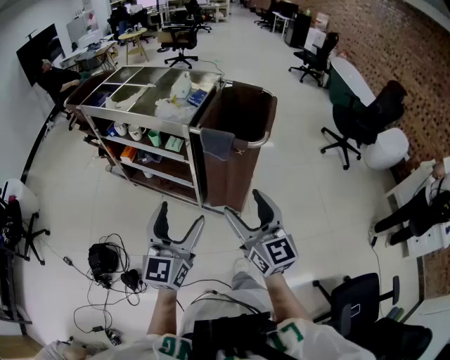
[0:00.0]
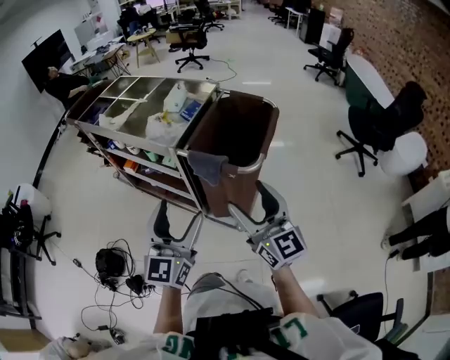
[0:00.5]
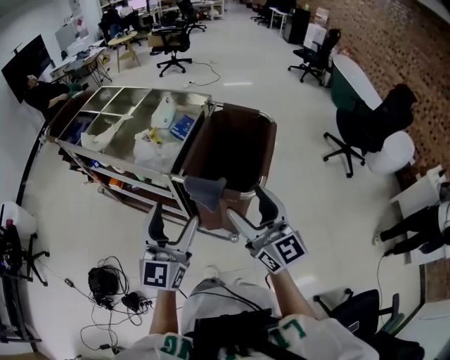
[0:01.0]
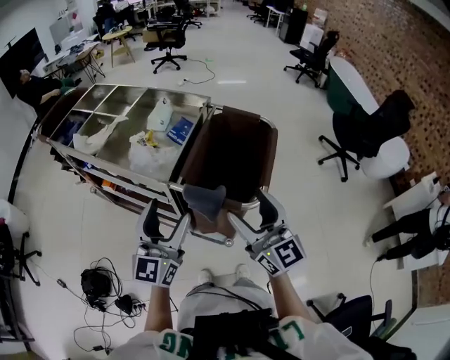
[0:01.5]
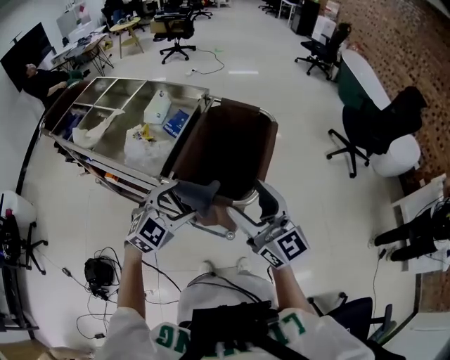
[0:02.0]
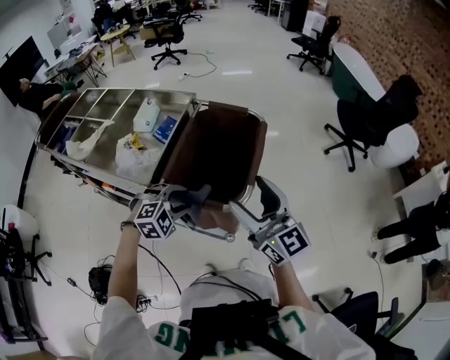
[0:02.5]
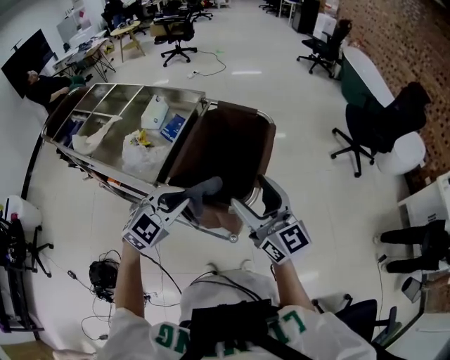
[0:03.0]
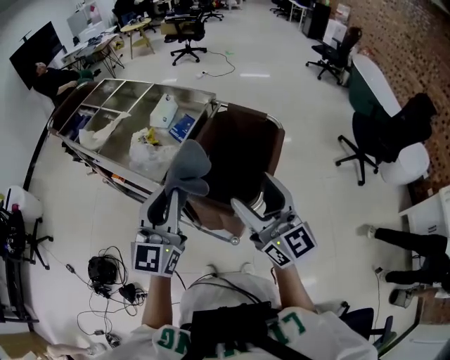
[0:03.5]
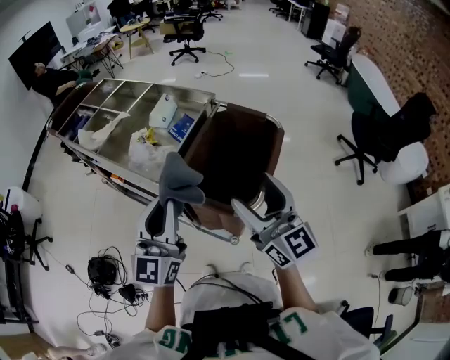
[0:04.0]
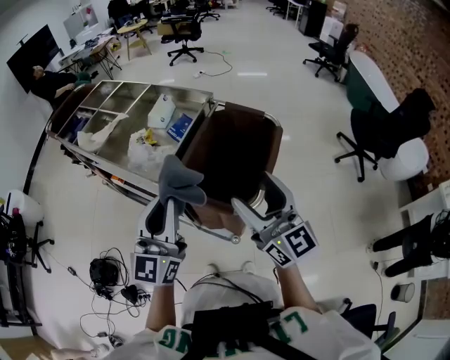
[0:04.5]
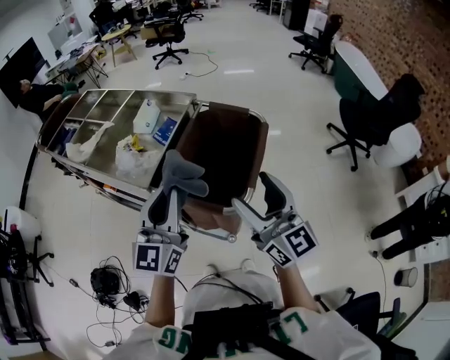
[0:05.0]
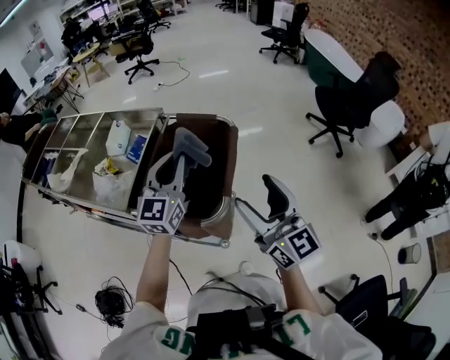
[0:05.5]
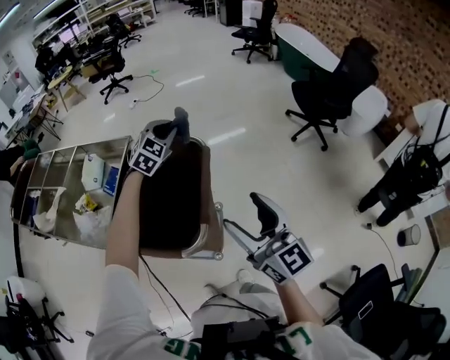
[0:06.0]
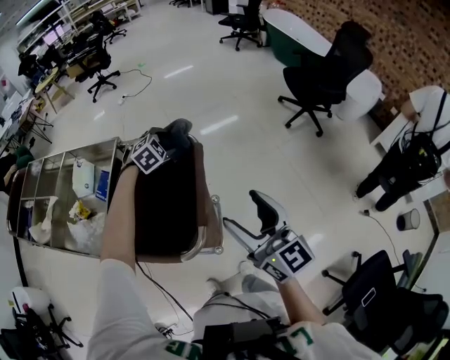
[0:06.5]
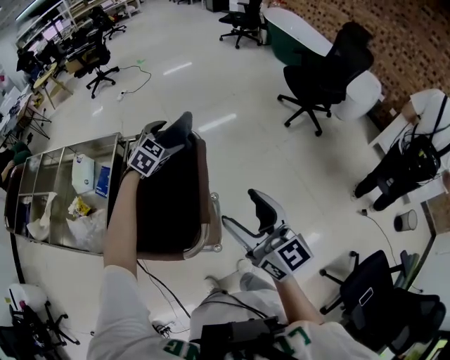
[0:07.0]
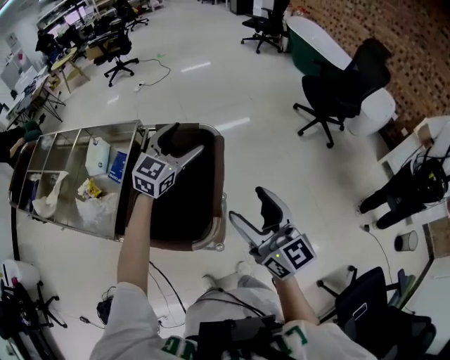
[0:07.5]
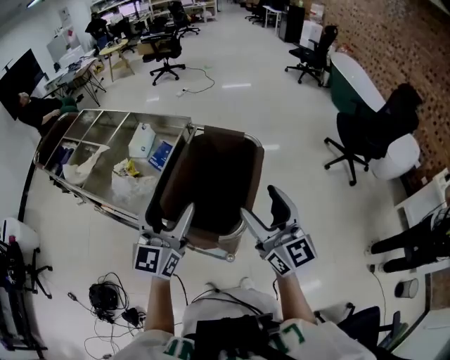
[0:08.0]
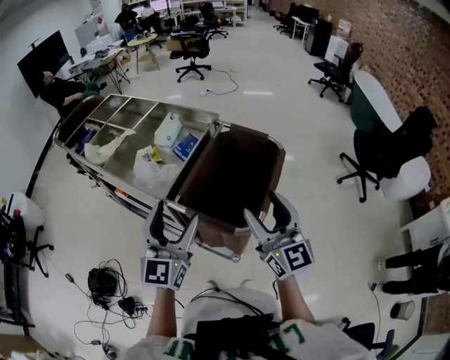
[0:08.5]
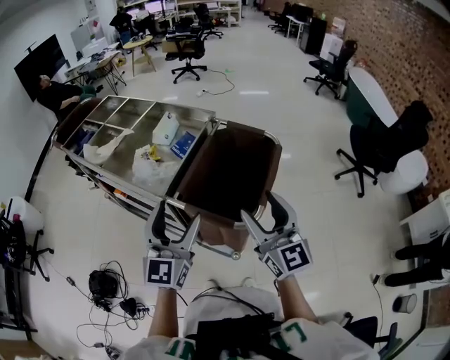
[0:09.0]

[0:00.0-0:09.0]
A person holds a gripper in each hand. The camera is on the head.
0:00.0 to 0:02.0: The two grippers go about 30 cm forward and to the right. The left gripper angles its fingers downward, by approximately 30 degrees.
0:02.0 to 0:04.5: The left gripper is displaced upward by roughly 15 cm, tips its fingers upward by roughly 40 degrees, and closes its fingers.
0:04.5 to 0:07.0: The left gripper shifts by approximately 50 cm, angles its fingers downward, by roughly 50 degrees, and opens its fingers; the right gripper shifts by about 20 cm, and changes its angle by roughly 20 degrees.
0:07.0 to 0:09.0: The right gripper changes place by about 15 cm. The left gripper ends up approximately 50 cm from where it was, and tilts its fingers about 40 degrees upward.

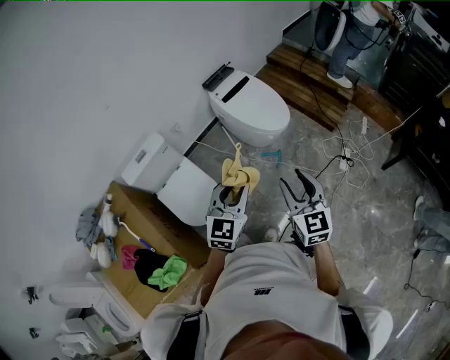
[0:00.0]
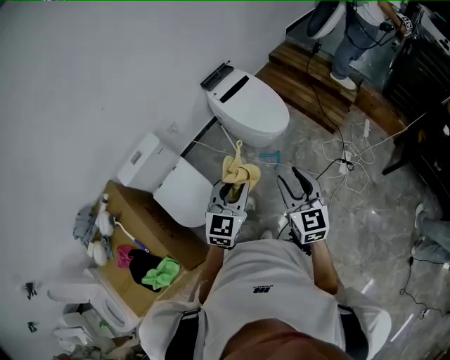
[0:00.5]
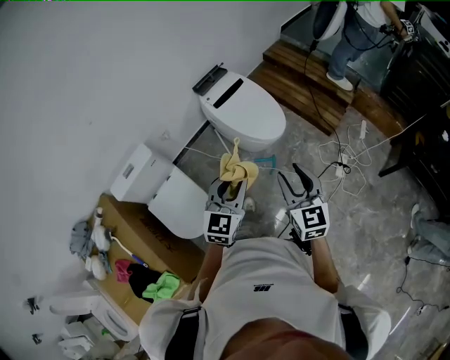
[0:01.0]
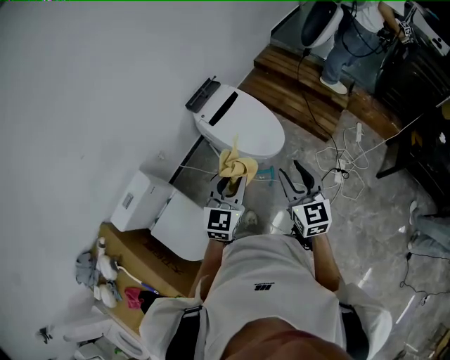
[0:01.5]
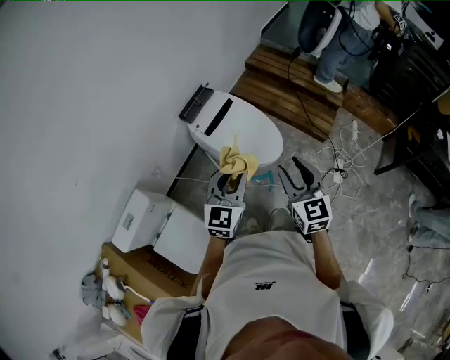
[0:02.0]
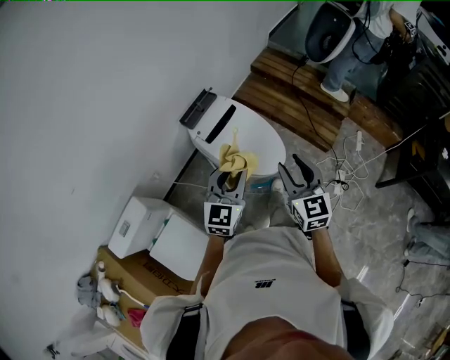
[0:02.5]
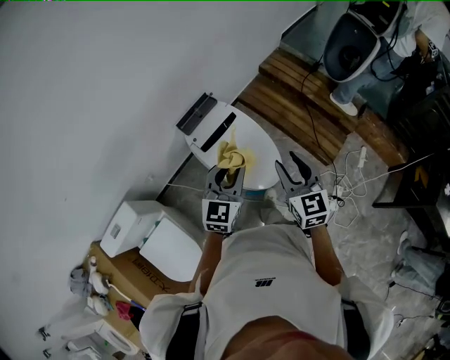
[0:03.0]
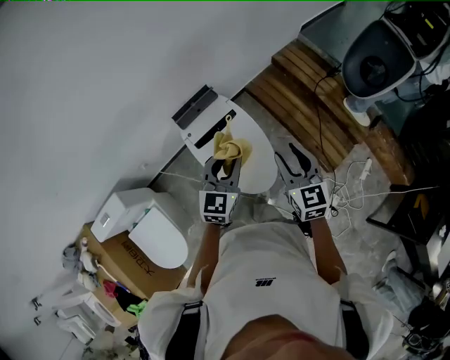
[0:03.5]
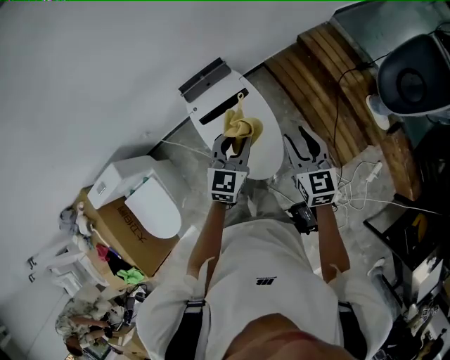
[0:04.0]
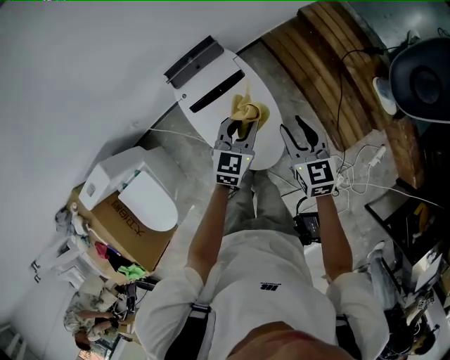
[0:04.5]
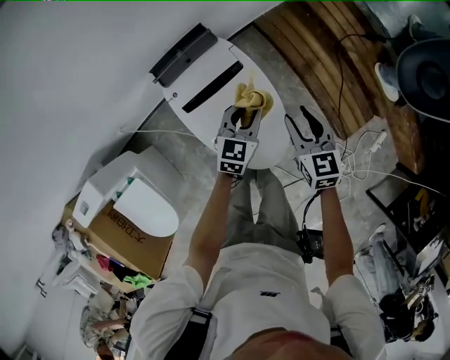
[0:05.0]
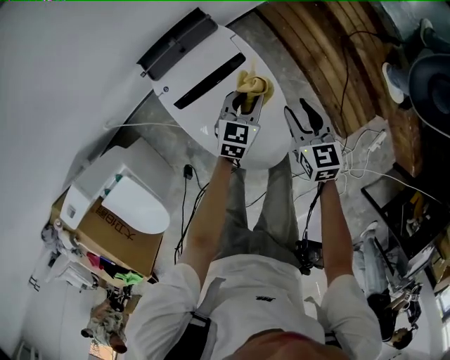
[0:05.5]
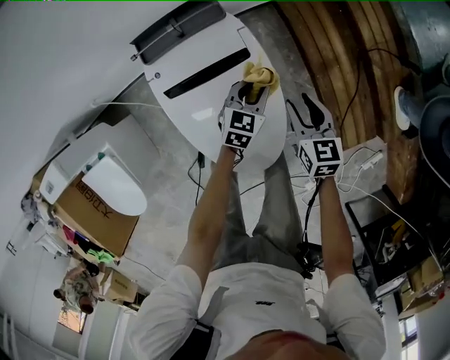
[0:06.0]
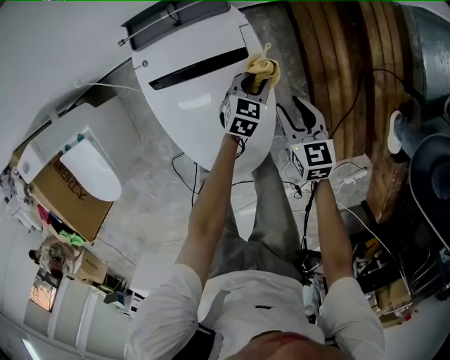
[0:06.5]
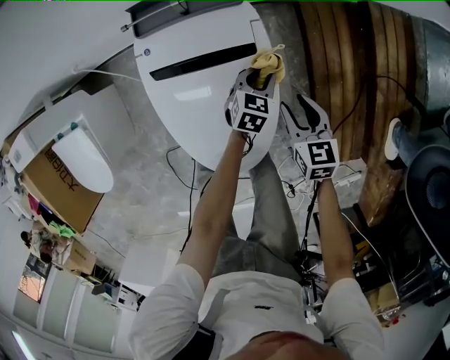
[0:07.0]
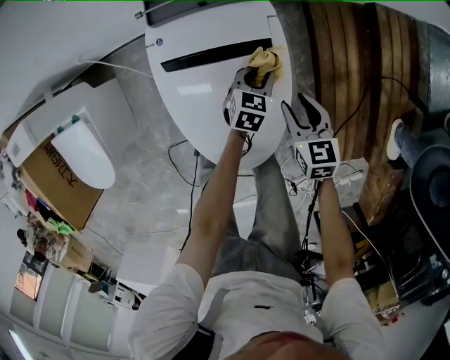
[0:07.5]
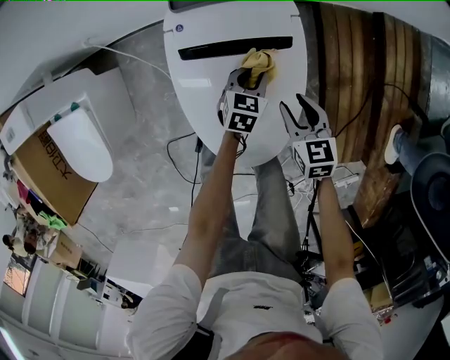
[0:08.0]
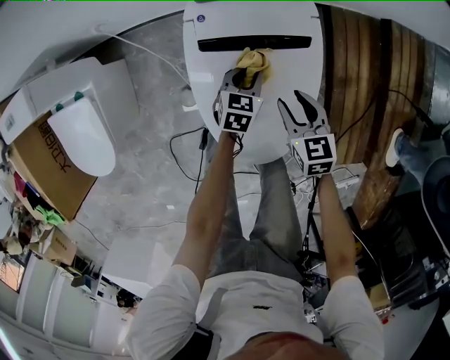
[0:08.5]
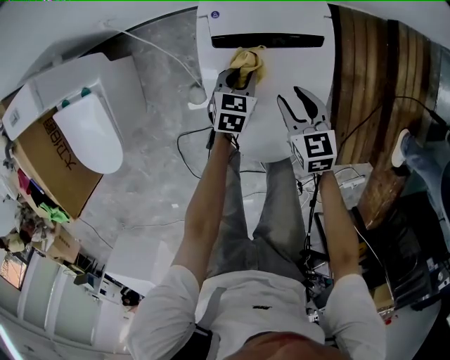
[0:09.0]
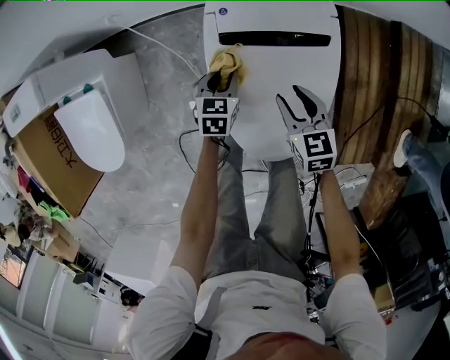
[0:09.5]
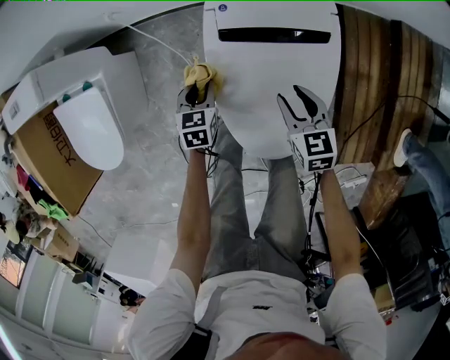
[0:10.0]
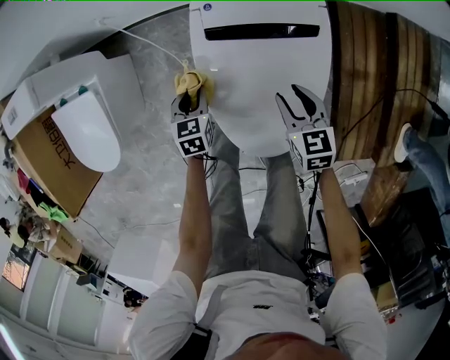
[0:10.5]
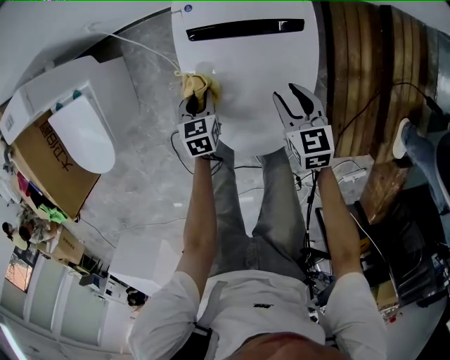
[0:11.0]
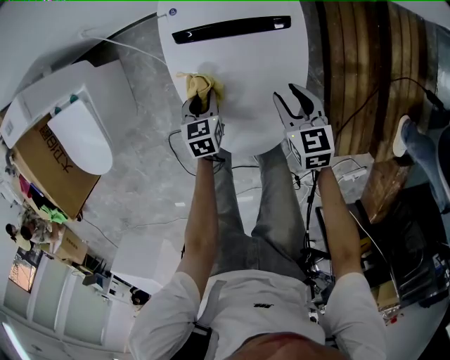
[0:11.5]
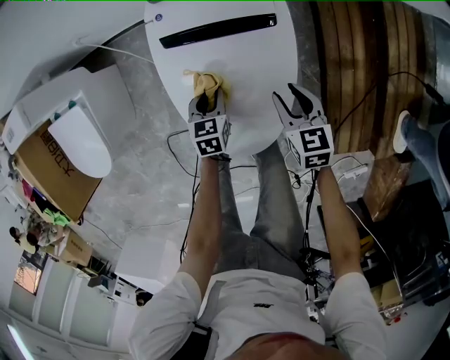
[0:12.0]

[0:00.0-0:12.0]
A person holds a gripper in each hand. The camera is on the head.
0:00.0 to 0:02.0: The grippers both shift forward by roughly 35 cm.
0:02.0 to 0:04.0: The two grippers travel together, about 40 cm. The left gripper rotates some 30 degrees. Meanwhile the right gripper turns by about 30 degrees.
0:04.0 to 0:06.0: The left gripper heads downward, covering about 40 cm, and turns by roughly 20 degrees, while the right gripper shifts approximately 40 cm downward and forward.
0:06.0 to 0:08.0: The grippers both shift to the left and downward by roughly 10 cm. The right gripper rotates roughly 20 degrees. Meanwhile the left gripper rotates roughly 20 degrees.
0:08.0 to 0:10.0: The left gripper shifts roughly 25 cm to the left, and rotates roughly 20 degrees; the right gripper moves to the left, approximately 10 cm.
0:10.0 to 0:12.0: The left gripper is displaced to the right and backward by some 15 cm. Meanwhile the right gripper heads to the right, covering approximately 15 cm.

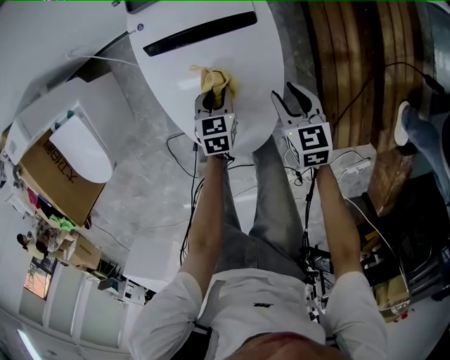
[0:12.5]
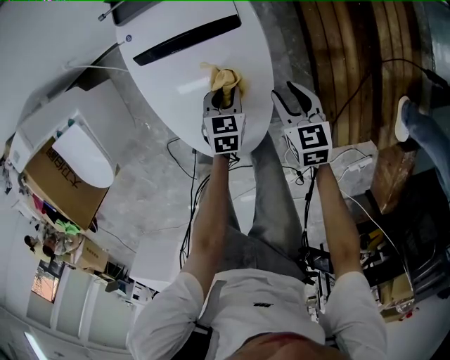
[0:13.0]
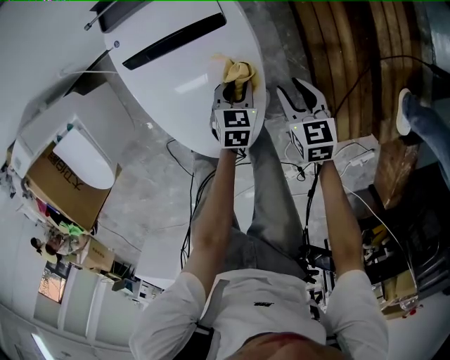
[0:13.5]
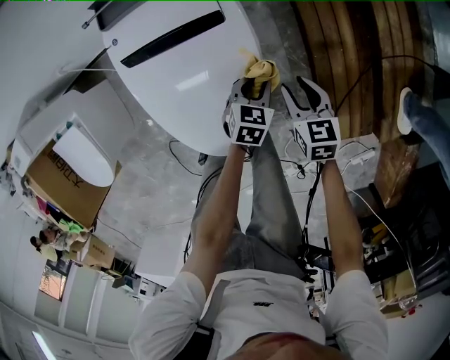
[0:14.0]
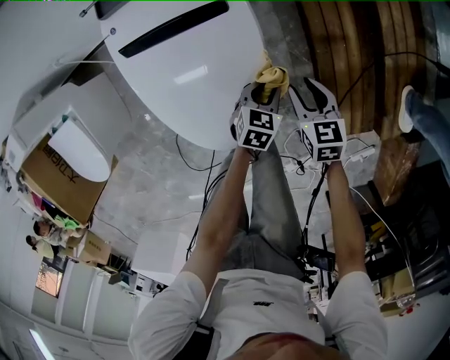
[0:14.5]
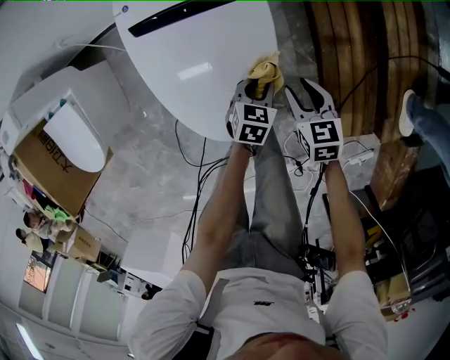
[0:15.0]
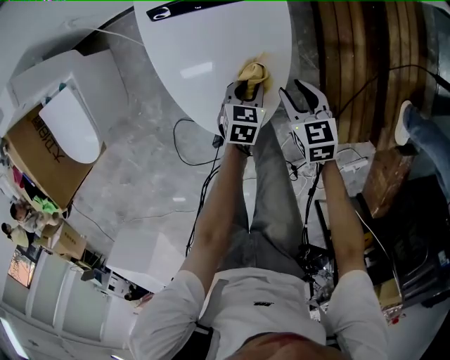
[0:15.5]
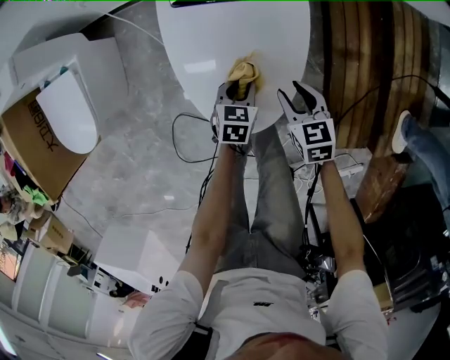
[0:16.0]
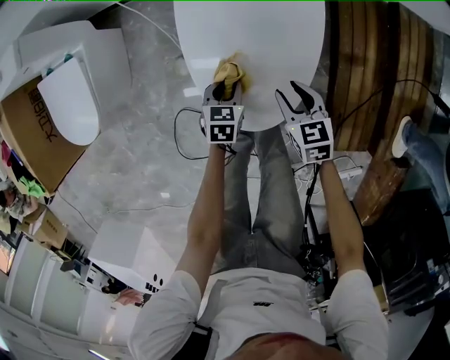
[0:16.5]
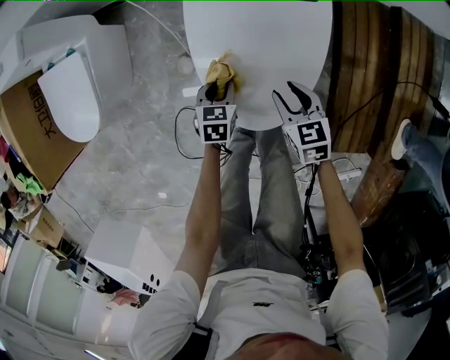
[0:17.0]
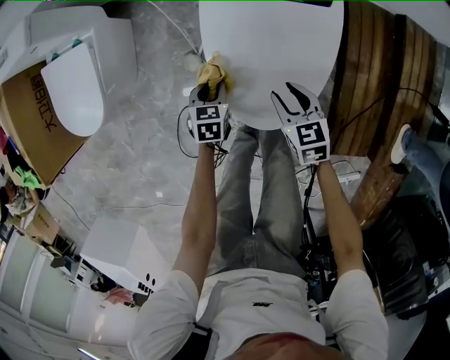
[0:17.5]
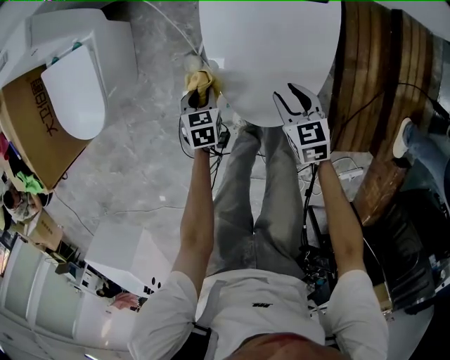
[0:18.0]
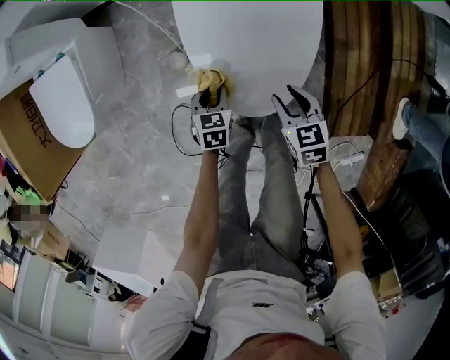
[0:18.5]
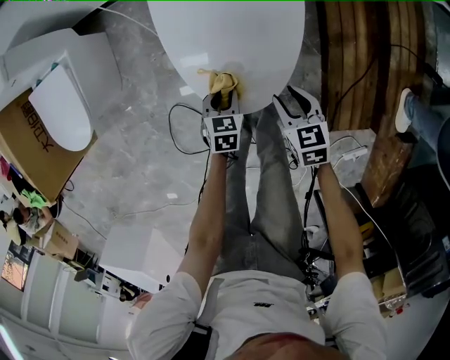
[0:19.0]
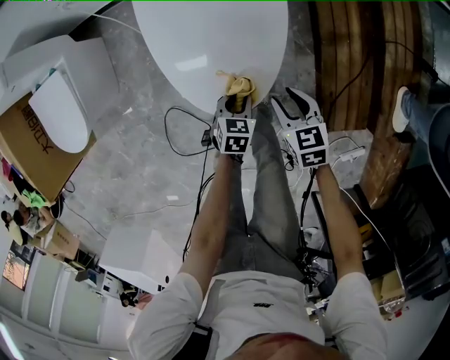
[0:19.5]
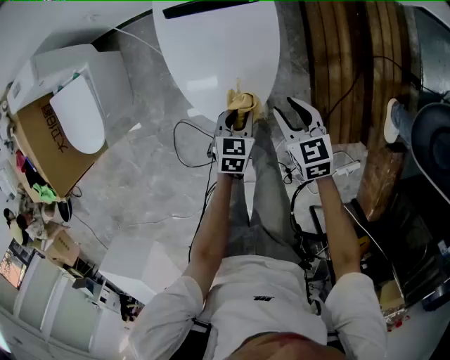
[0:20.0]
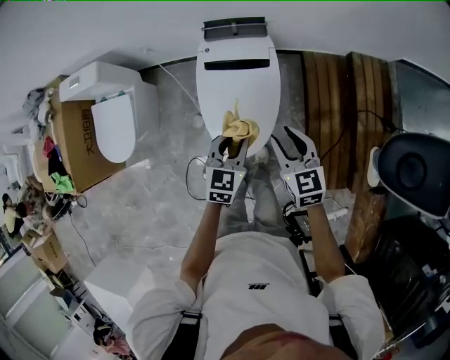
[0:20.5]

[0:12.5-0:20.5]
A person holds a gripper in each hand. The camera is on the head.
0:12.5 to 0:14.5: The left gripper is displaced to the right by approximately 20 cm, and turns by approximately 20 degrees; the right gripper heads to the right, covering roughly 10 cm.
0:14.5 to 0:16.5: The right gripper shifts by some 20 cm. Meanwhile the left gripper ends up about 25 cm from where it was, and changes its angle by roughly 30 degrees.
0:16.5 to 0:18.5: The left gripper travels to the left and backward by some 10 cm, while the right gripper moves backward, some 5 cm.
0:18.5 to 0:20.5: The right gripper goes about 35 cm upward, and swivels approximately 20 degrees. The left gripper heads upward and to the right, covering approximately 40 cm, and rotates roughly 30 degrees.
